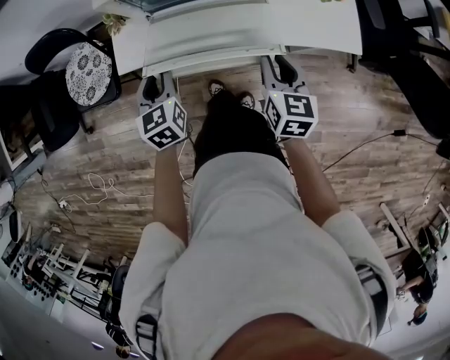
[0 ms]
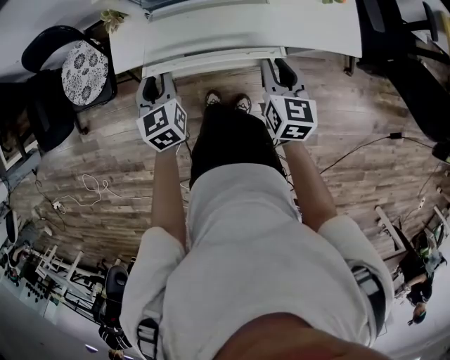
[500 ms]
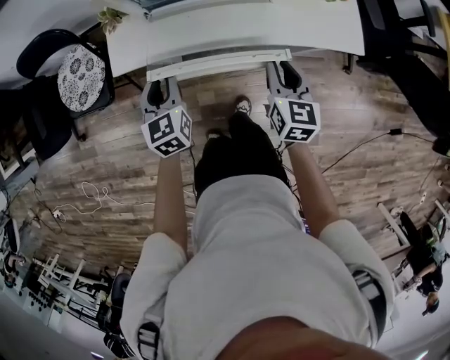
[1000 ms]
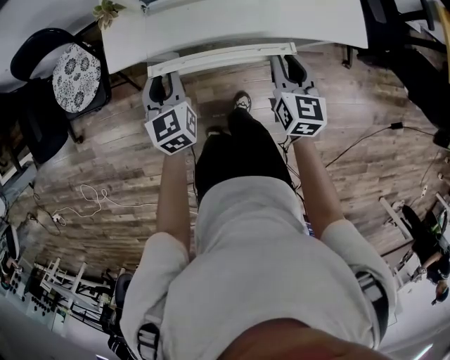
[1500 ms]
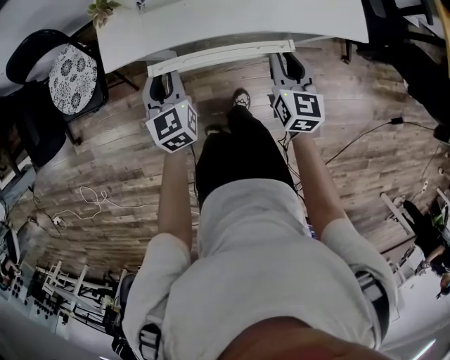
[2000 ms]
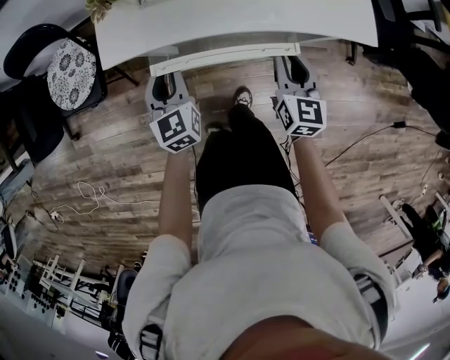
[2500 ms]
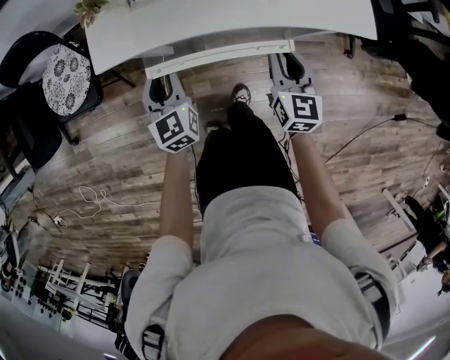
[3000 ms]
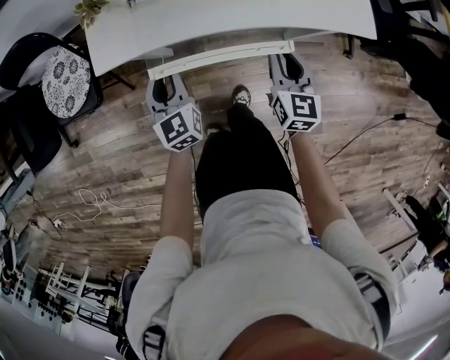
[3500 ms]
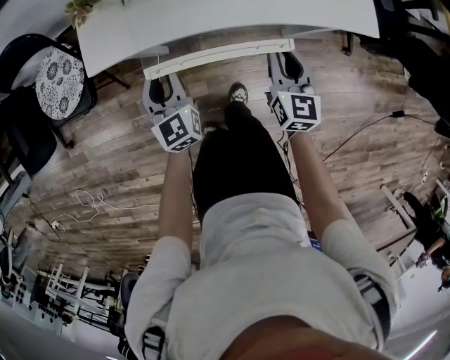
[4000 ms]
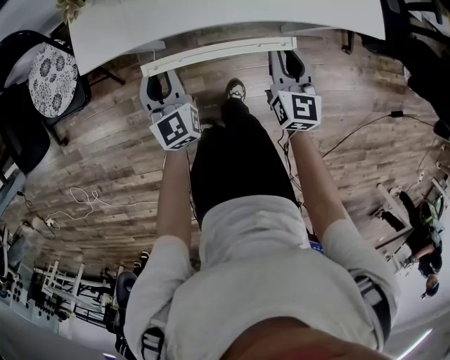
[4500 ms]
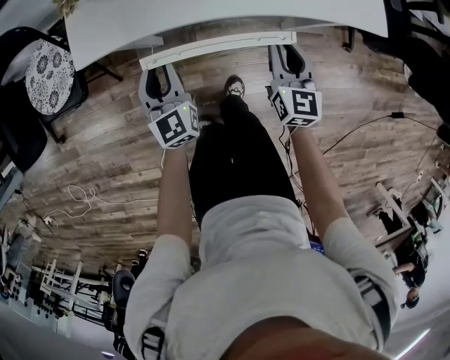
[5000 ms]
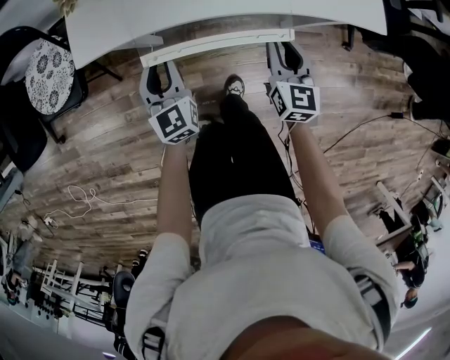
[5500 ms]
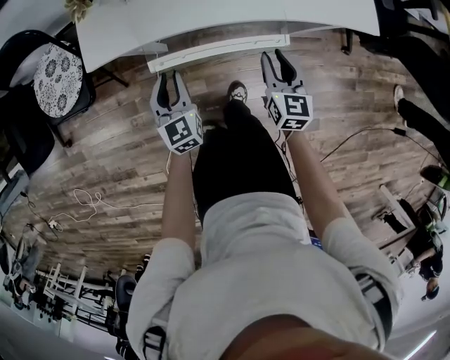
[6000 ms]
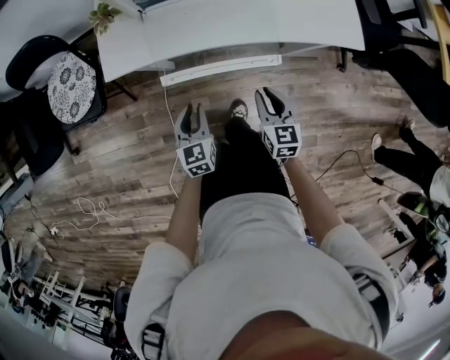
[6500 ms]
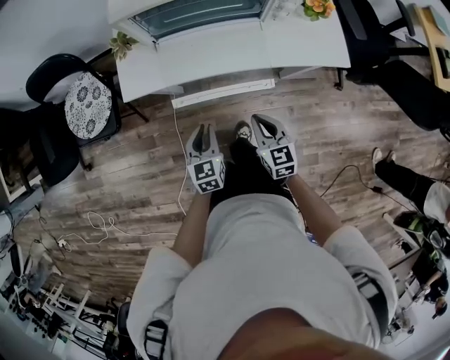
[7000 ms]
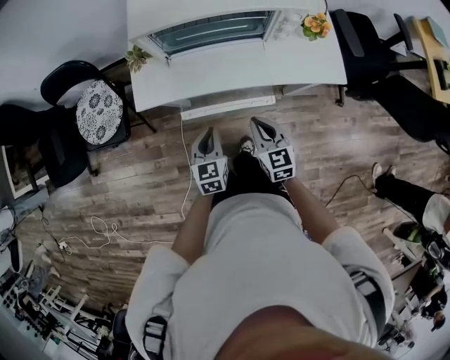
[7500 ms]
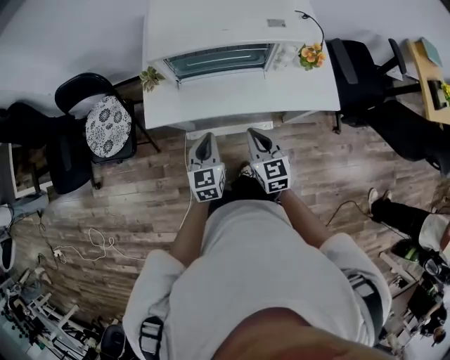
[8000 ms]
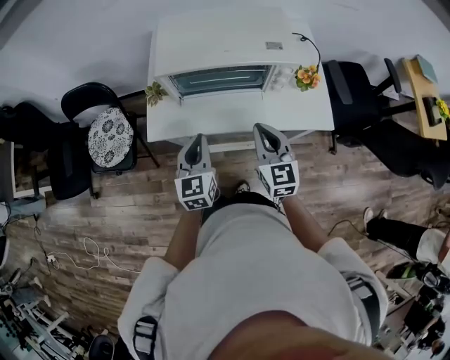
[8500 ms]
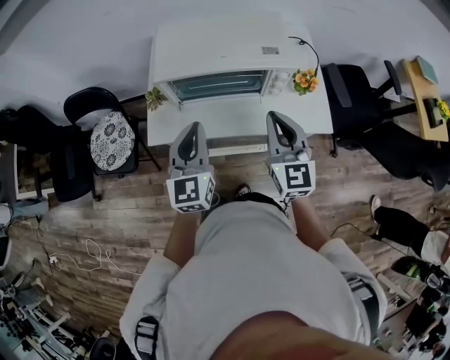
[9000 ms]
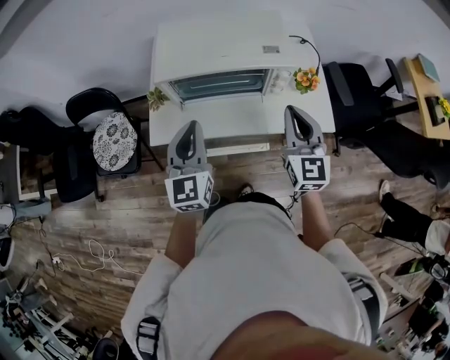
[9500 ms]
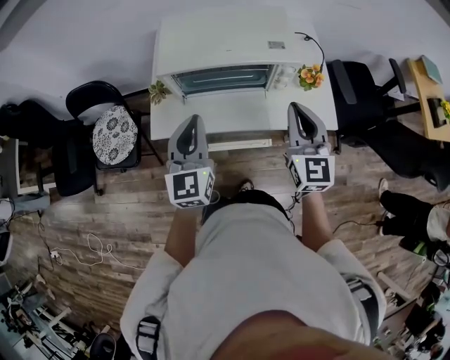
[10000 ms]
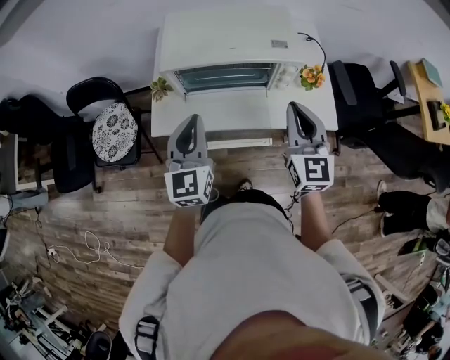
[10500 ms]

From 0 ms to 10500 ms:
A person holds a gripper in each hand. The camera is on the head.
From 0 ms to 2000 ms: Both grippers move downward, roughly 5 cm.
From 2000 ms to 4000 ms: The two grippers go about 5 cm downward.
From 4000 ms to 6500 ms: The two grippers go approximately 10 cm backward.
From 6500 ms to 8500 ms: Both grippers move upward, some 25 cm. The right gripper rotates roughly 20 degrees.
From 8500 ms to 10500 ms: The left gripper is displaced upward by some 10 cm. The right gripper heads upward and to the right, covering approximately 10 cm.

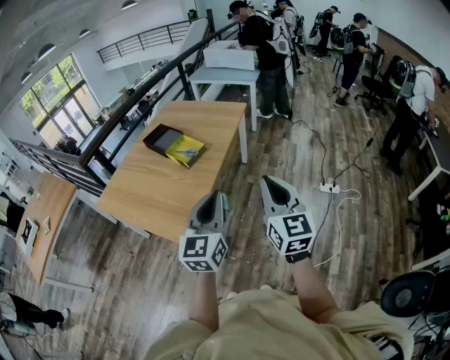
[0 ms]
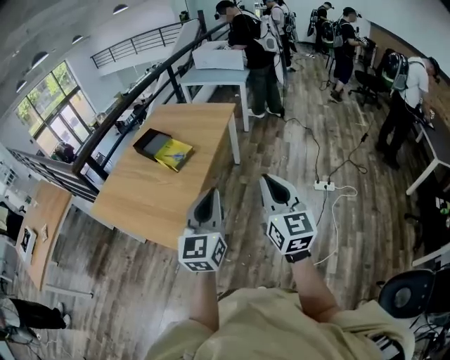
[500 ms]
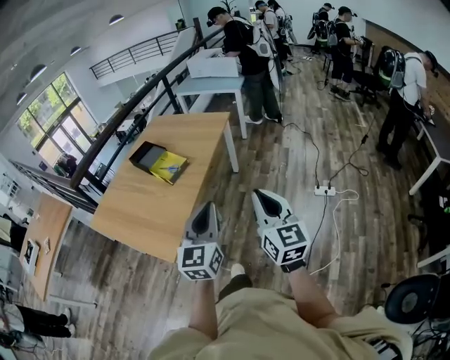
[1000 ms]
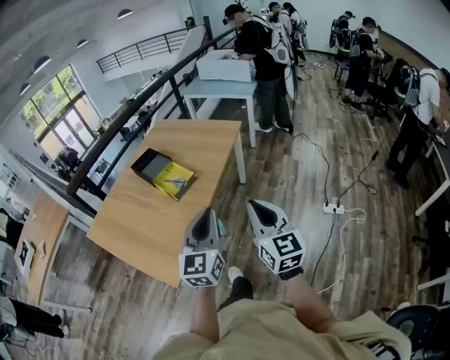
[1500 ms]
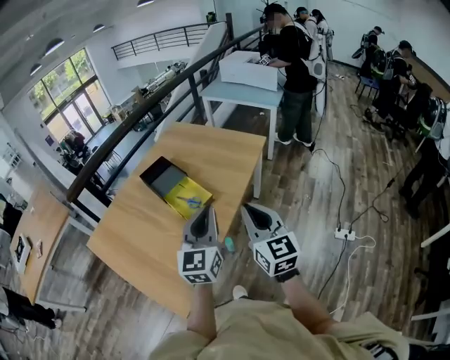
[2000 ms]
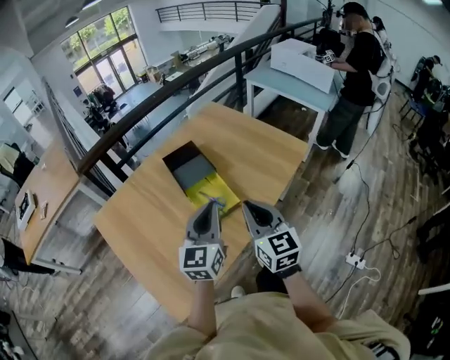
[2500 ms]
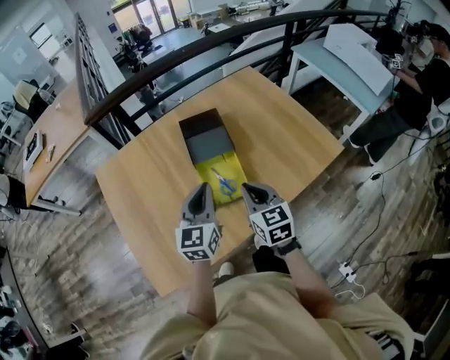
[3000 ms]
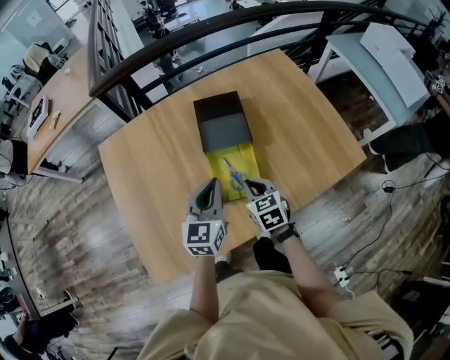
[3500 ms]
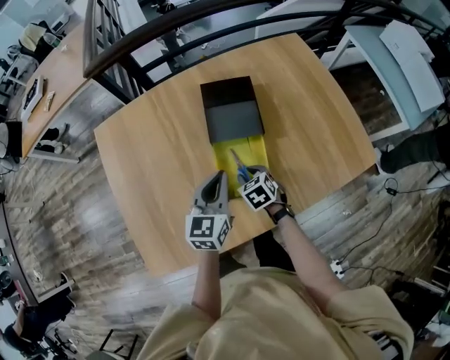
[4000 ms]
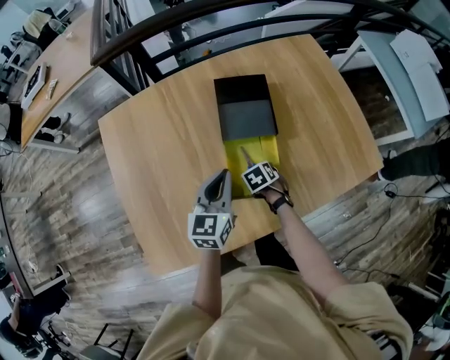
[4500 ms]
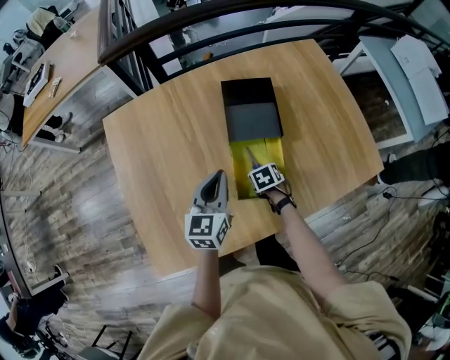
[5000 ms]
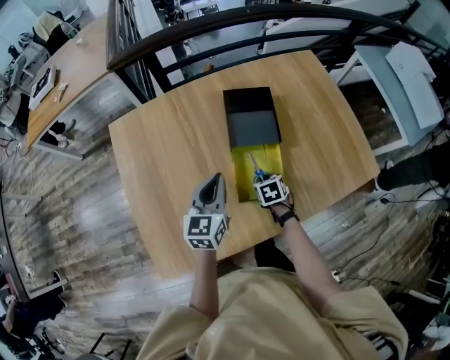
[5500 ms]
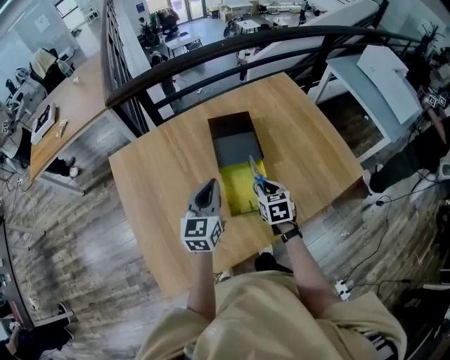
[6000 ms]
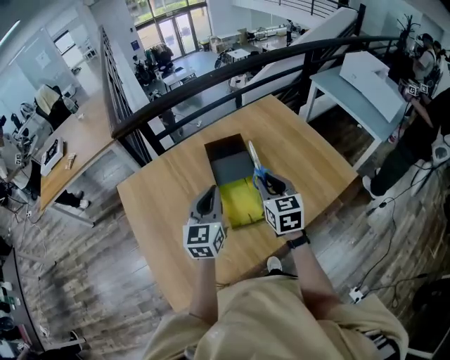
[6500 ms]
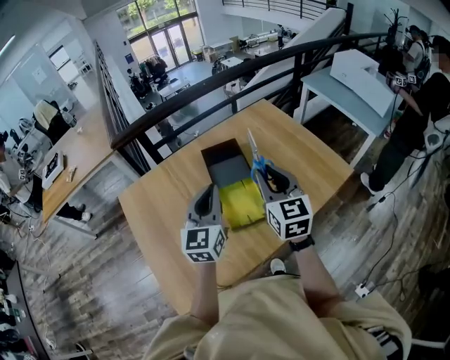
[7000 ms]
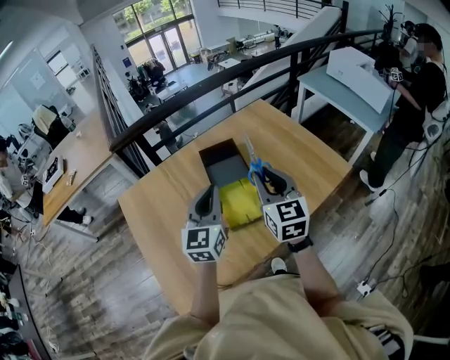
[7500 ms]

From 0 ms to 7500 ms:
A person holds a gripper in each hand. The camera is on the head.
From 0 ms to 2000 ms: Both grippers move forward, approximately 35 cm.
From 2000 ms to 4000 ms: The right gripper moves some 50 cm, and tilts its fingers about 60 degrees downward. The left gripper moves some 40 cm, and changes its angle by approximately 40 degrees.
From 4000 ms to 5500 ms: The right gripper turns by about 20 degrees; the left gripper shifts by roughly 10 cm.
From 5500 ms to 7500 ms: The right gripper heads upward, covering about 40 cm, and tilts its fingers approximately 60 degrees upward. The left gripper is displaced upward and to the right by some 20 cm, and turns by some 20 degrees.

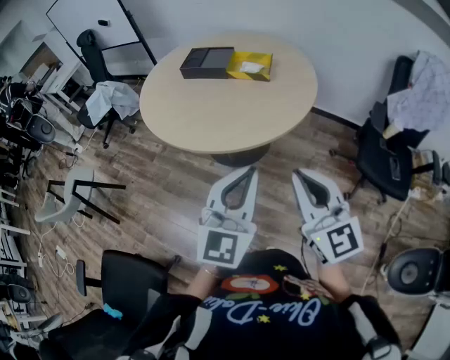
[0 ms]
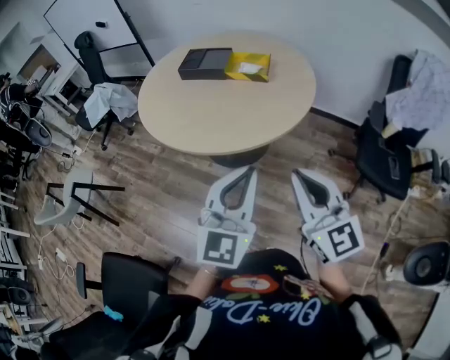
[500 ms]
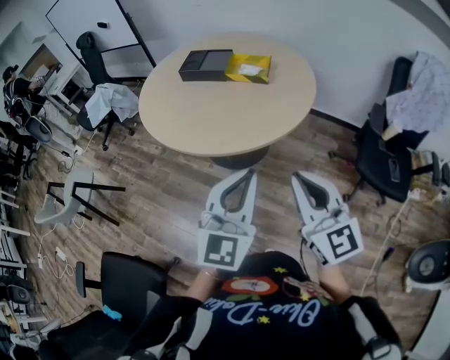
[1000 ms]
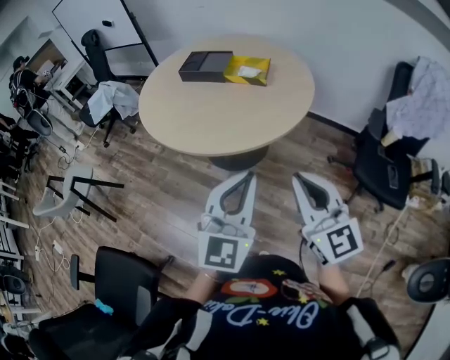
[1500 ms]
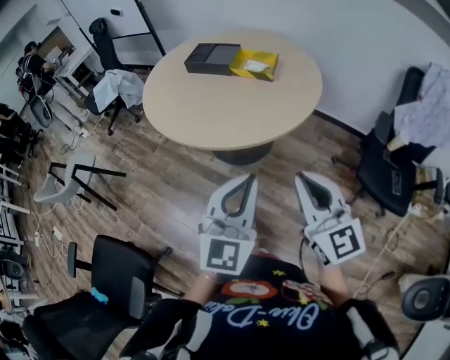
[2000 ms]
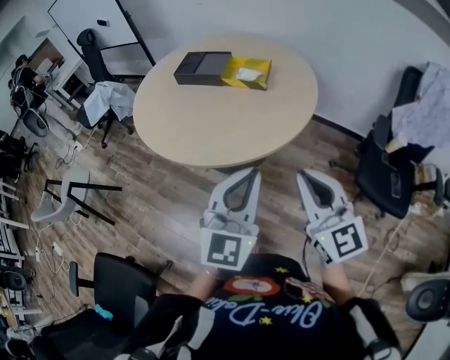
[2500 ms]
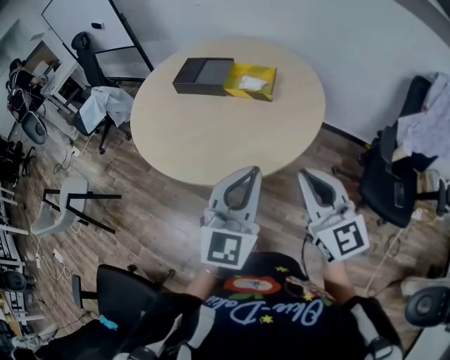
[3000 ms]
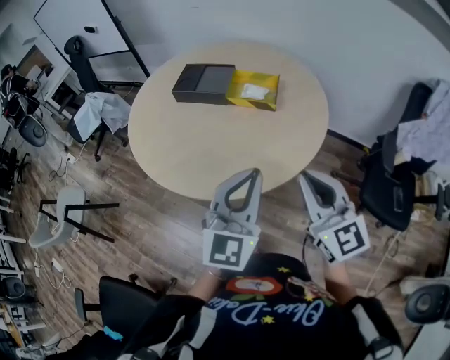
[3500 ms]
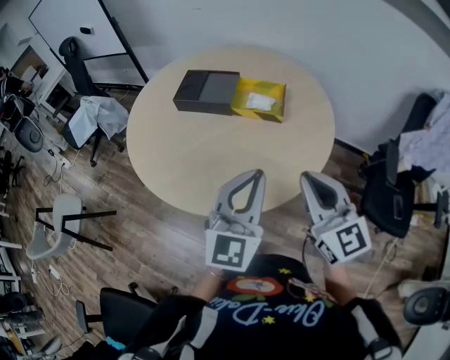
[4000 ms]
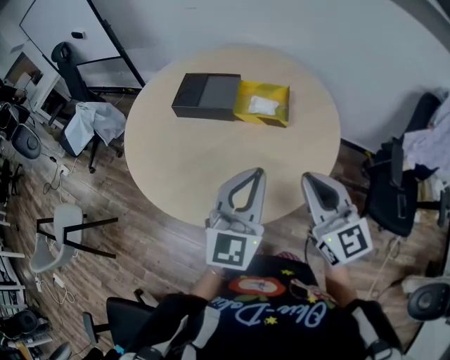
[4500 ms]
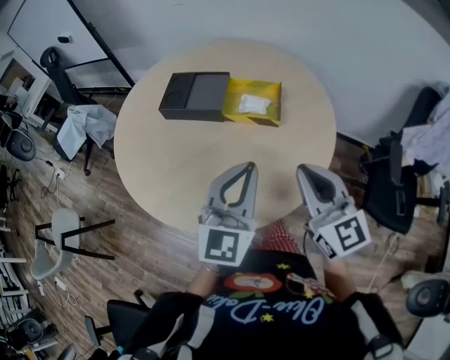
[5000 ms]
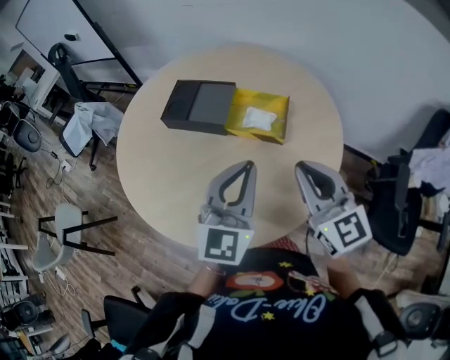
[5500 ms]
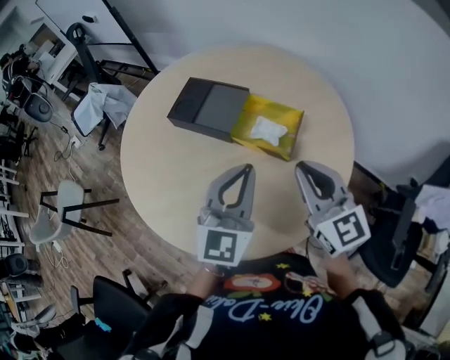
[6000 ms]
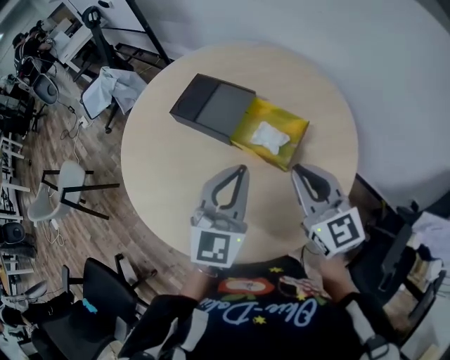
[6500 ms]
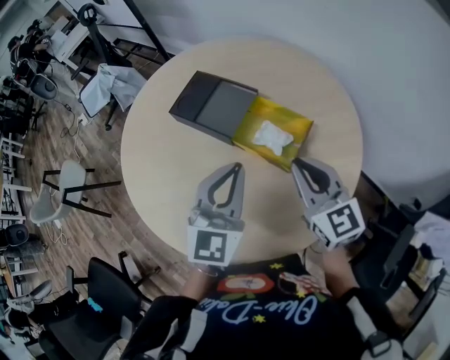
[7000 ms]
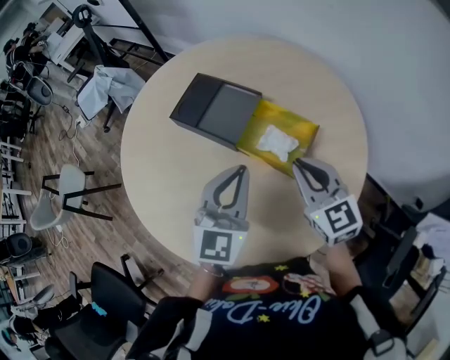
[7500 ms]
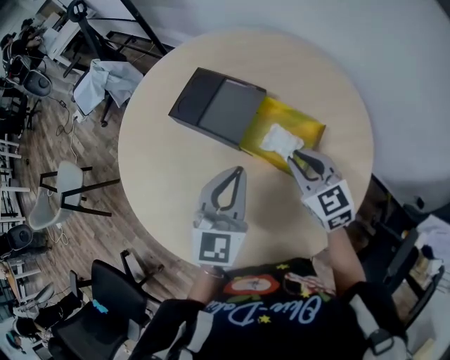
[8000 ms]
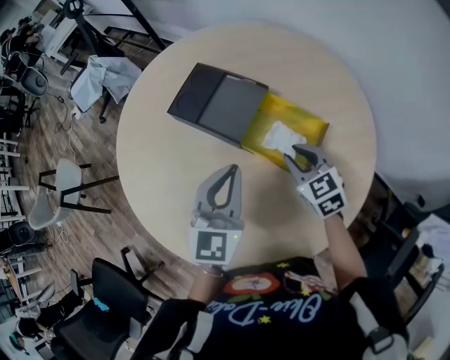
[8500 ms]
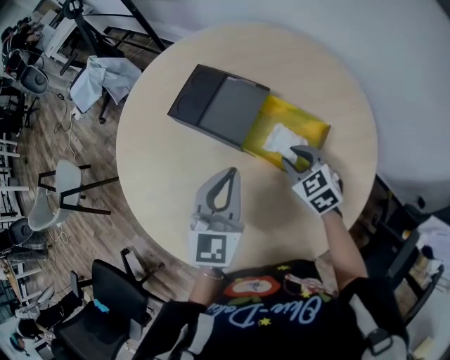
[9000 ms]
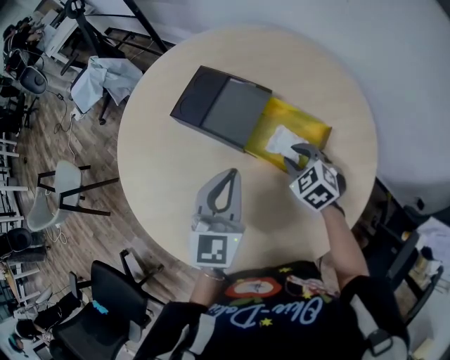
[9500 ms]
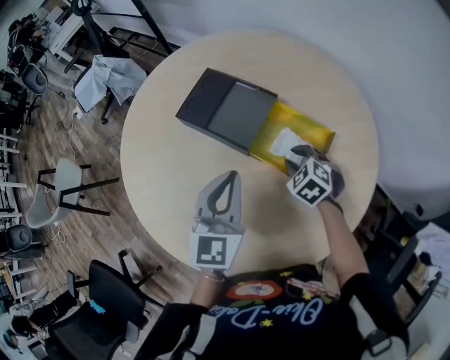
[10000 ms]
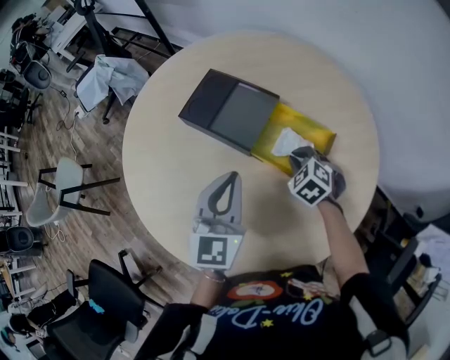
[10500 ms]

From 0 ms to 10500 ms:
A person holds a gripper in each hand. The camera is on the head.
From 0 ms to 2000 ms: The right gripper moves to the right, approximately 5 cm.
From 2000 ms to 4000 ms: The grippers both shift forward by approximately 25 cm.
From 4000 ms to 6500 ms: Both grippers move forward, approximately 25 cm. The right gripper turns by some 20 degrees.
From 6500 ms to 8500 ms: The left gripper goes approximately 10 cm forward, downward and to the left; the right gripper heads downward and forward, covering roughly 20 cm, and turns by roughly 30 degrees.
From 8500 ms to 10500 ms: The right gripper travels downward by approximately 5 cm, and rotates some 30 degrees.
